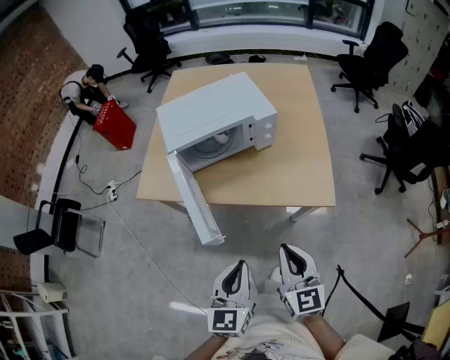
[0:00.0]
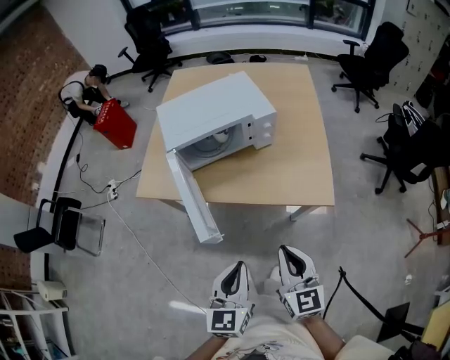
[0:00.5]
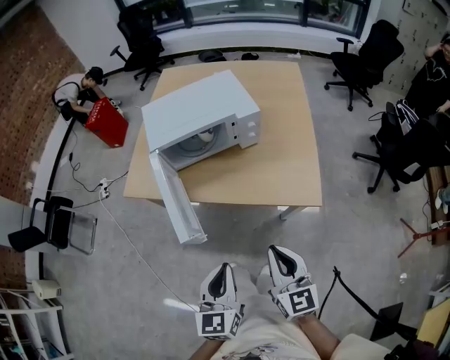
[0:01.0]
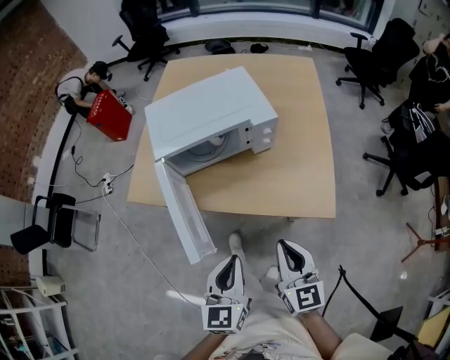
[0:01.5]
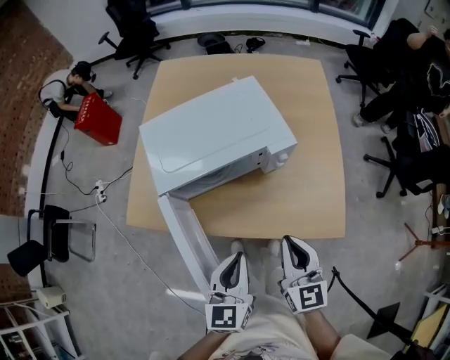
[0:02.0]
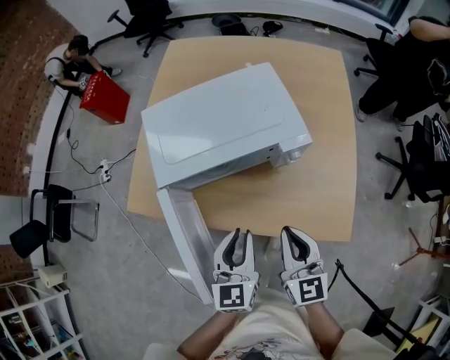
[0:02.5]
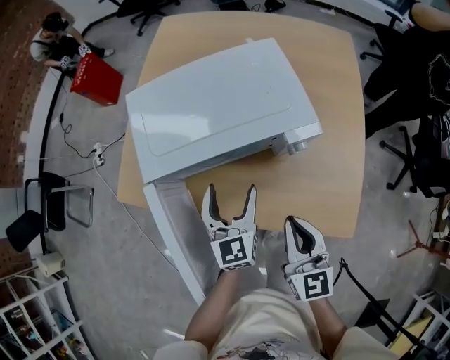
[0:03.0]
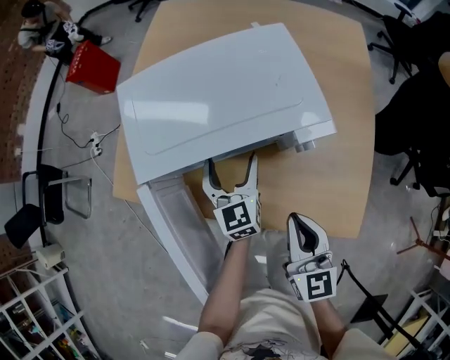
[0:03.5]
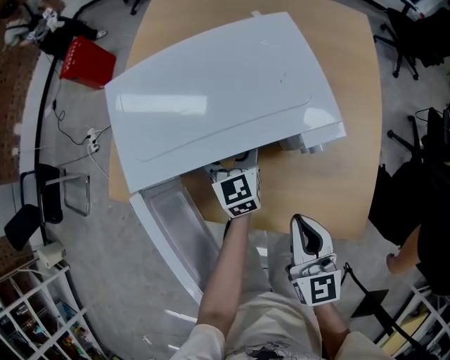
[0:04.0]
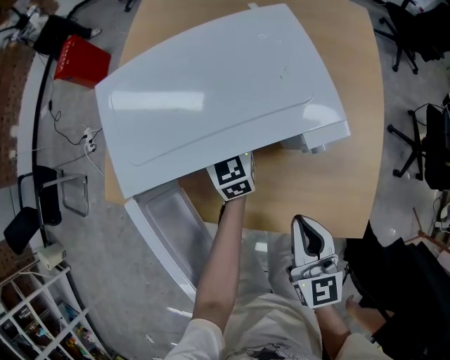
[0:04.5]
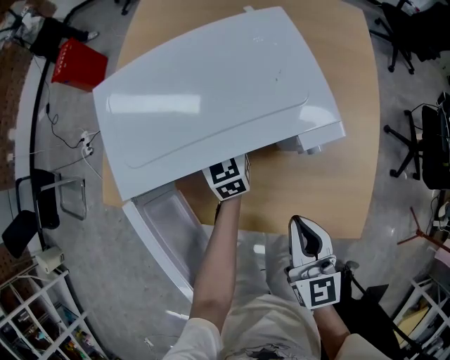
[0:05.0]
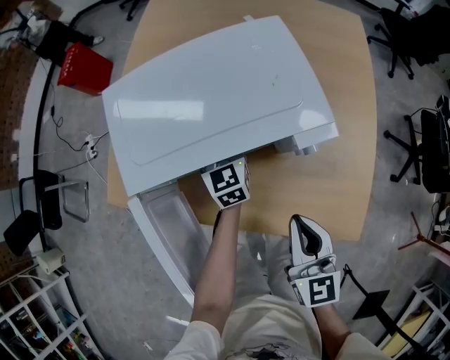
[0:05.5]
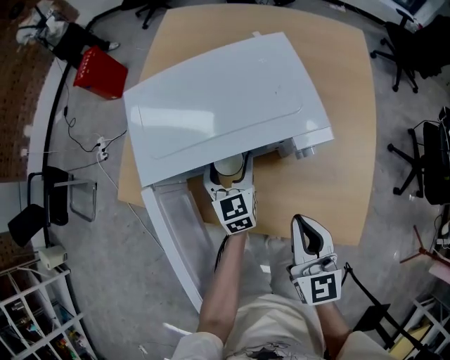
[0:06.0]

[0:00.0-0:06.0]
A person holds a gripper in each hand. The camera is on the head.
0:00.0 to 0:02.0: Both grippers travel together forward, roughly 20 cm.
0:02.0 to 0:04.0: The left gripper goes approximately 35 cm forward and downward, changes its angle by roughly 20 degrees, and opens up. The right gripper goes roughly 15 cm downward and forward.
0:04.0 to 0:06.0: The left gripper shifts by approximately 5 cm.

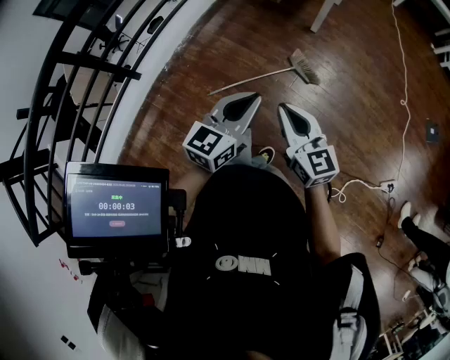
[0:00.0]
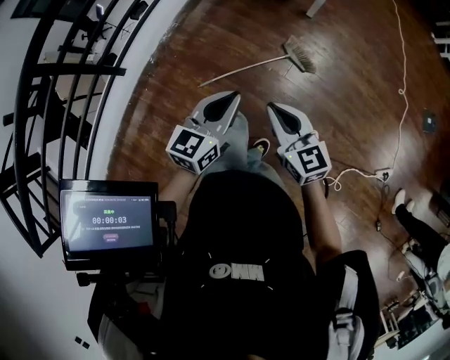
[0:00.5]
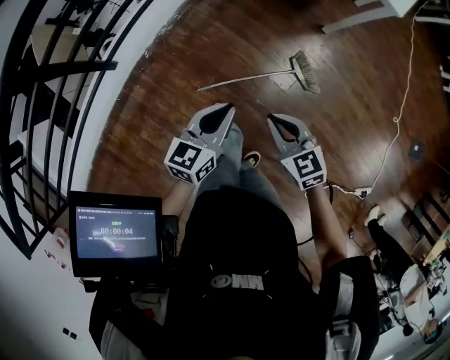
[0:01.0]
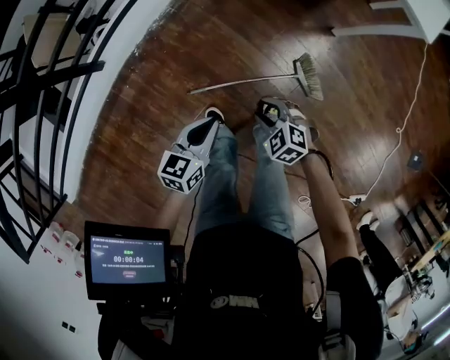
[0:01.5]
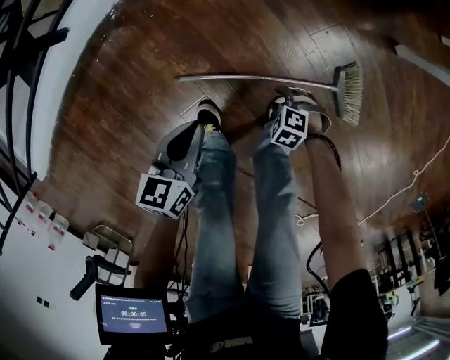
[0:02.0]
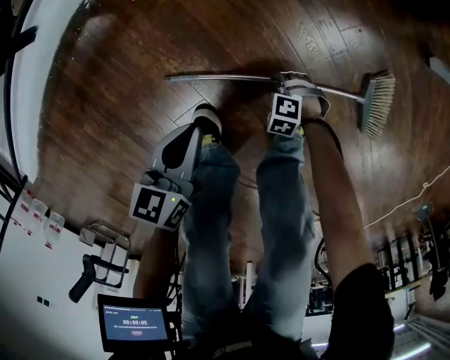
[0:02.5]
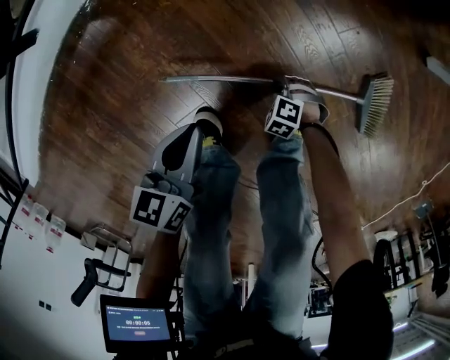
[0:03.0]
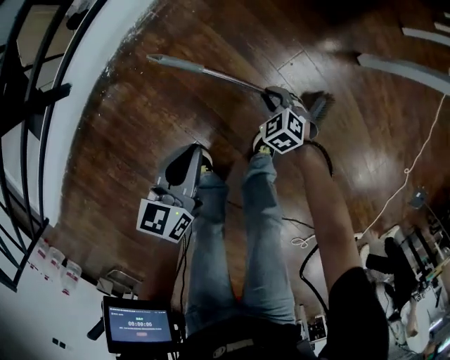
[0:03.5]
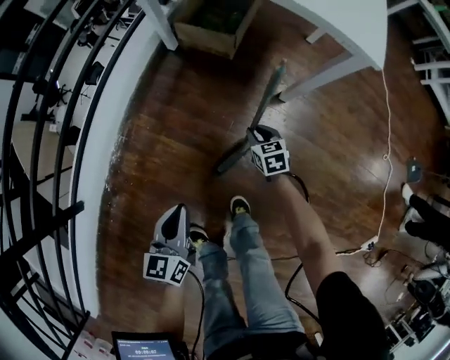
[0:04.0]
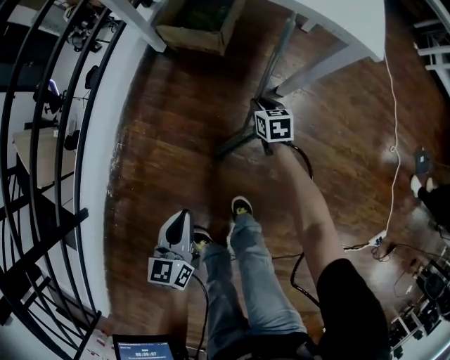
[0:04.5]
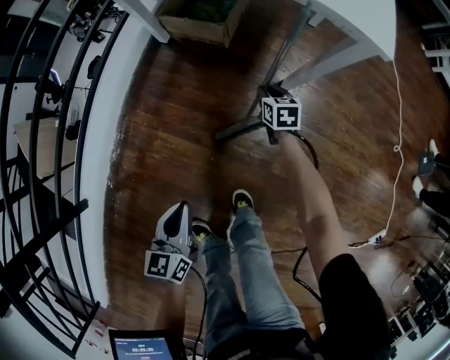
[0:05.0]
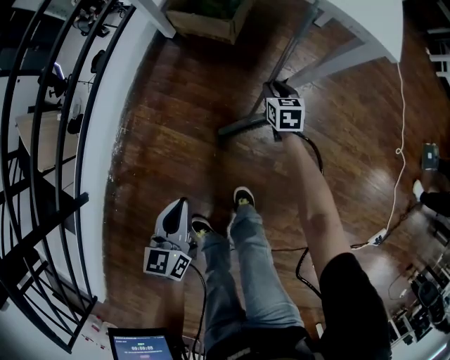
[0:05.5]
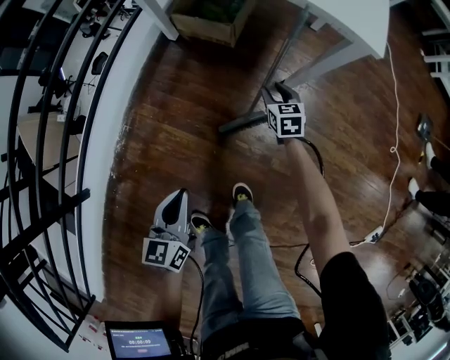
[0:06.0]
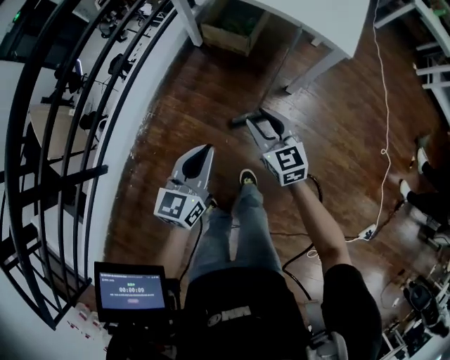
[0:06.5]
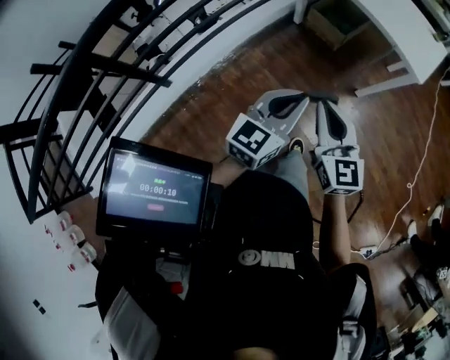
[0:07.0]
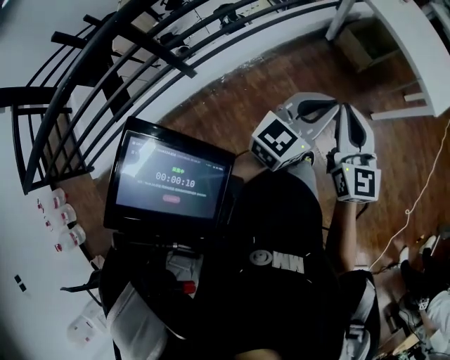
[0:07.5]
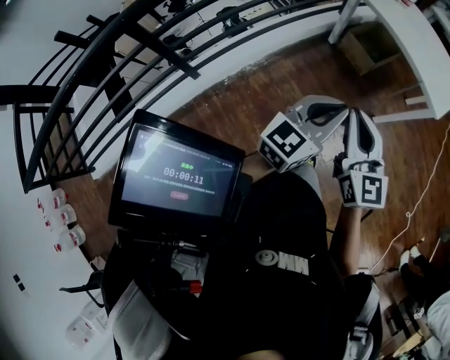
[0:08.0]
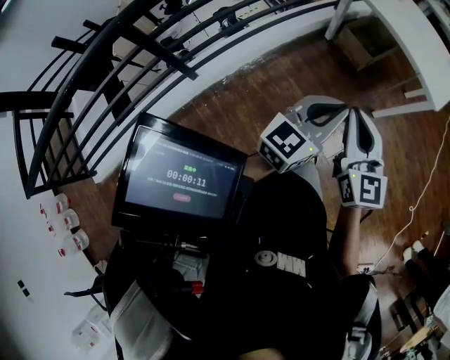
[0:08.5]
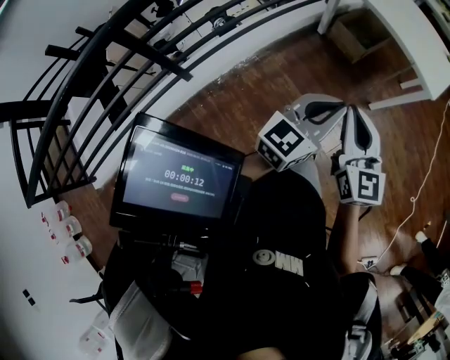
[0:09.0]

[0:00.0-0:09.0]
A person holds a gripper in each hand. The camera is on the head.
0:00.0 to 0:02.0: The grippers both shift downward by approximately 60 cm. The left gripper turns by roughly 50 degrees; the right gripper tips its fingers downward by roughly 70 degrees, and opens its fingers.
0:02.0 to 0:04.5: The left gripper ends up about 30 cm from where it was, and rotates approximately 20 degrees. The right gripper shifts by approximately 50 cm, twists about 90 degrees clockwise, seen from behind, and closes its fingers.
0:04.5 to 0:07.0: The left gripper moves upward, about 35 cm, and turns by roughly 30 degrees; the right gripper is displaced upward, backward and to the left by approximately 70 cm, and angles its fingers upward, by some 40 degrees.
0:07.0 to 0:09.0: The left gripper shifts some 10 cm backward and upward; the right gripper shifts roughly 10 cm upward and backward.

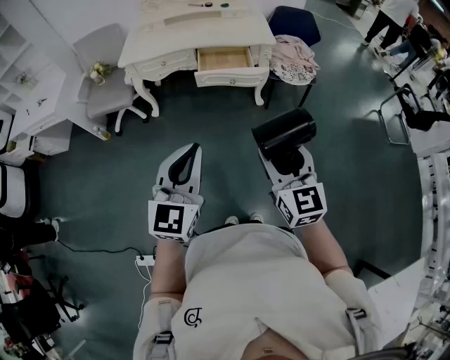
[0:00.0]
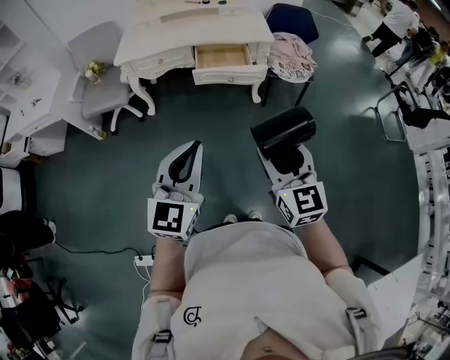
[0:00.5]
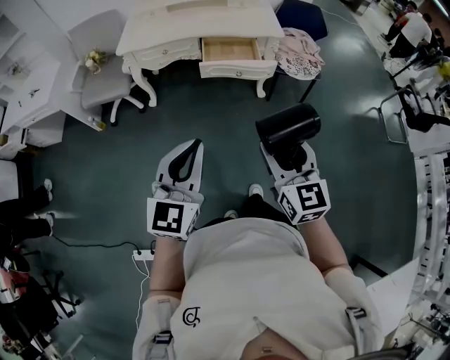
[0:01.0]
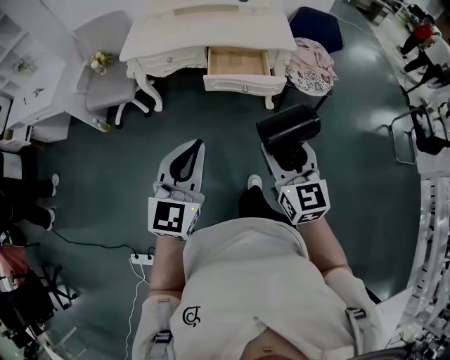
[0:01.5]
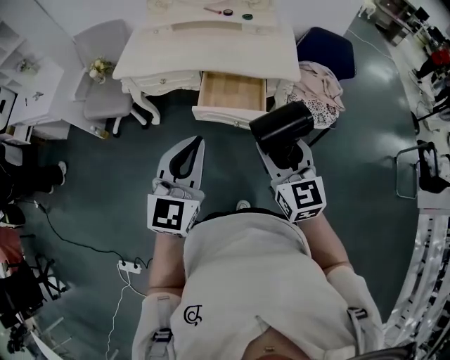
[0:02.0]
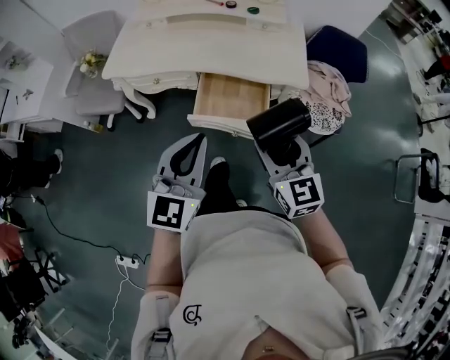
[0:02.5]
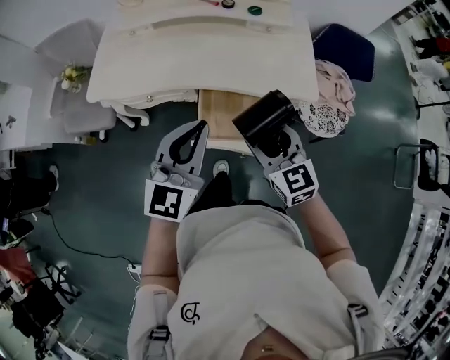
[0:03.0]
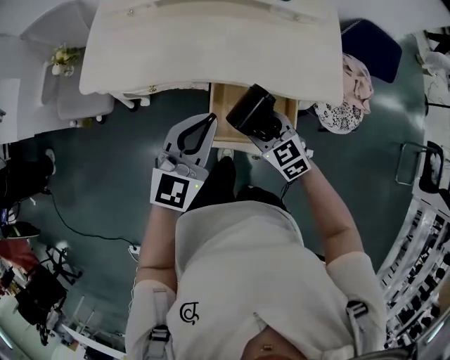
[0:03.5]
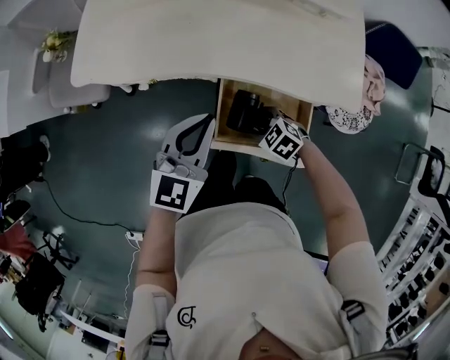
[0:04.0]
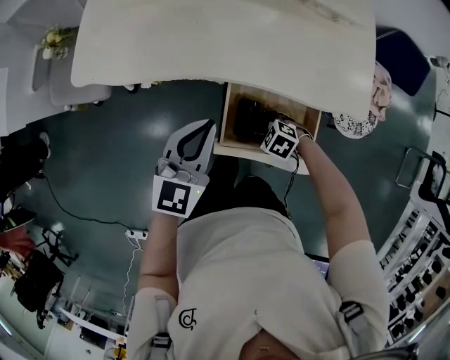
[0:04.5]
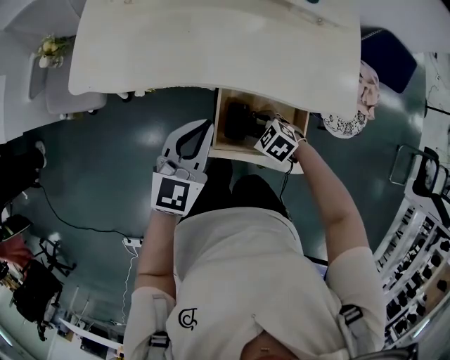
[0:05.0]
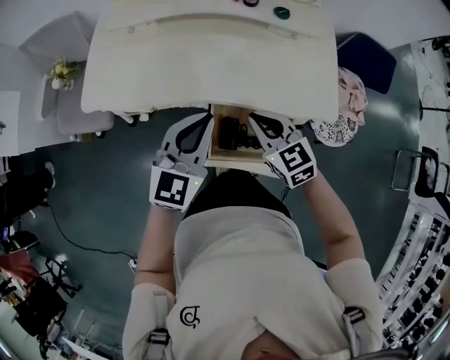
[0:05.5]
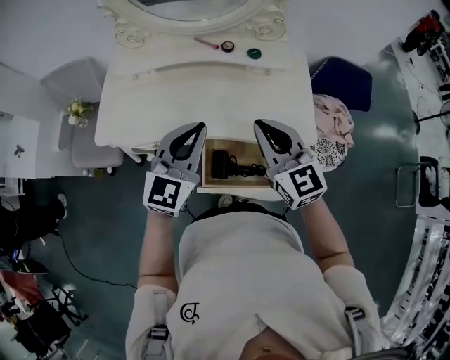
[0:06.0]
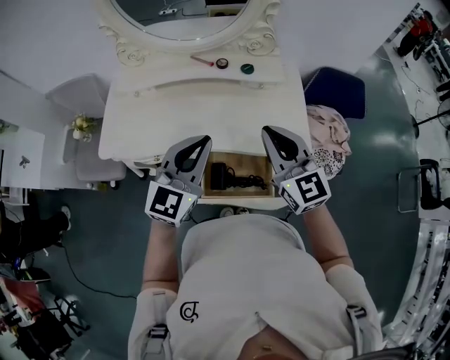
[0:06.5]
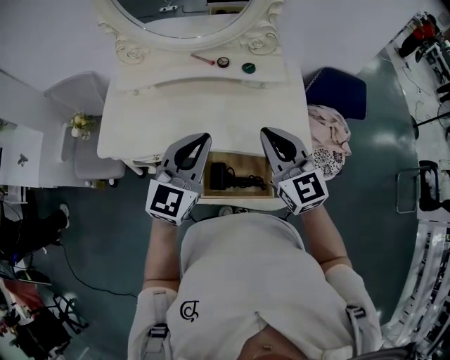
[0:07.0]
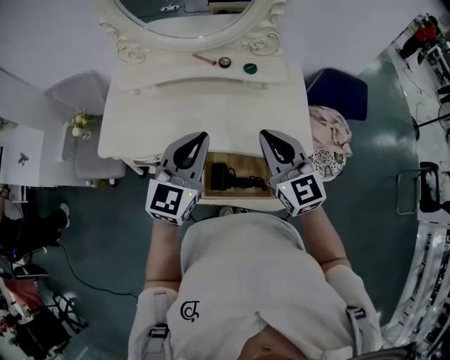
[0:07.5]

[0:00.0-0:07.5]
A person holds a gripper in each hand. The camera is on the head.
0:00.0 to 0:02.0: The two grippers go approximately 30 cm forward.
0:02.0 to 0:04.0: The right gripper travels downward and forward by some 50 cm, and angles its fingers downward, by about 50 degrees. The left gripper moves forward and downward, some 40 cm.
0:04.0 to 0:05.5: The right gripper is displaced upward by roughly 25 cm, angles its fingers upward, by roughly 30 degrees, and closes up. The left gripper shifts approximately 5 cm upward.
0:05.5 to 0:07.5: The right gripper heads upward and to the right, covering approximately 20 cm, and swivels some 30 degrees, while the left gripper travels upward by some 10 cm.

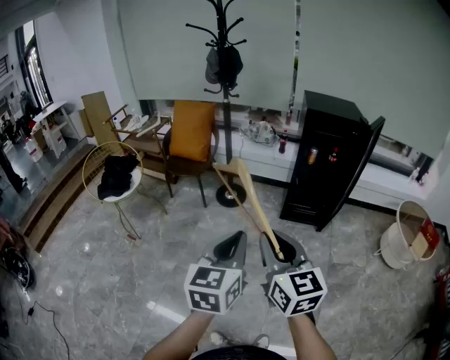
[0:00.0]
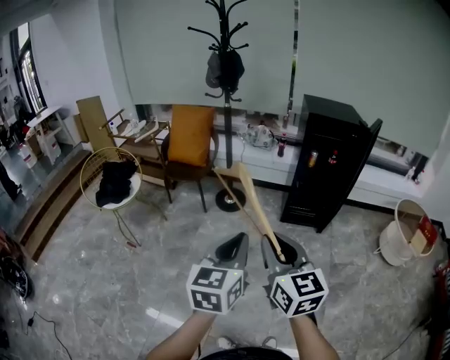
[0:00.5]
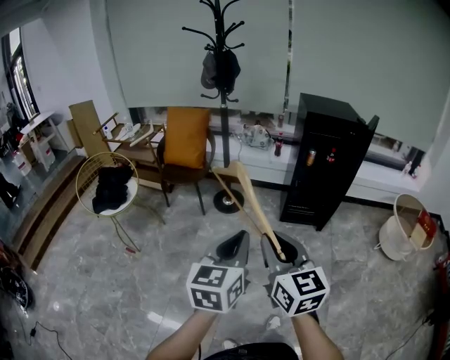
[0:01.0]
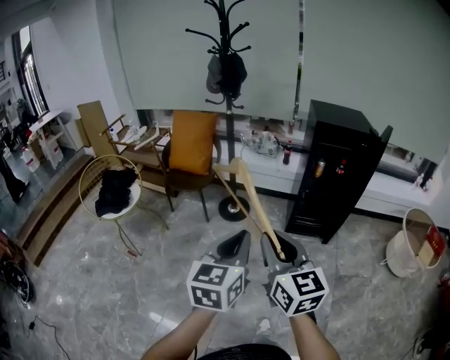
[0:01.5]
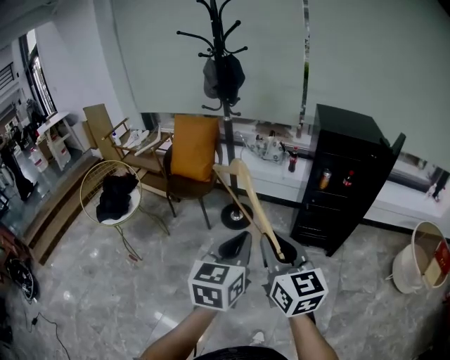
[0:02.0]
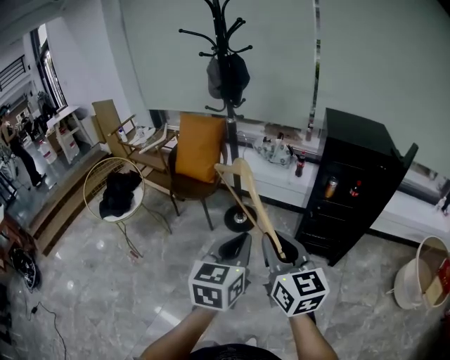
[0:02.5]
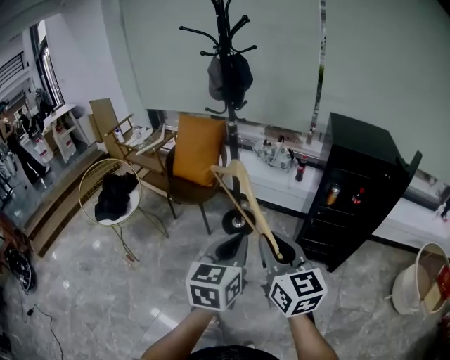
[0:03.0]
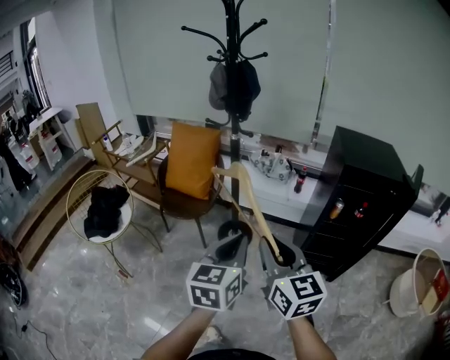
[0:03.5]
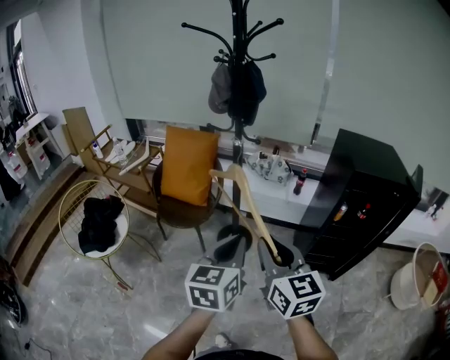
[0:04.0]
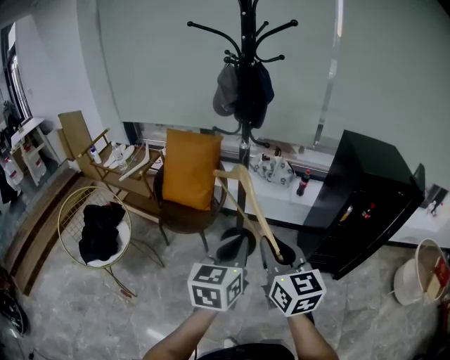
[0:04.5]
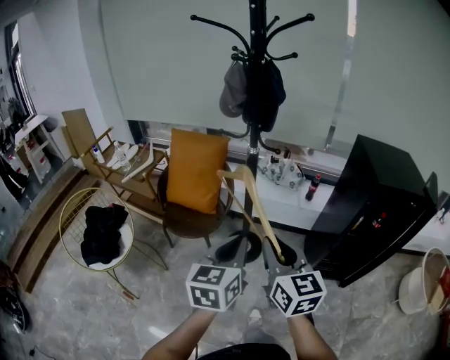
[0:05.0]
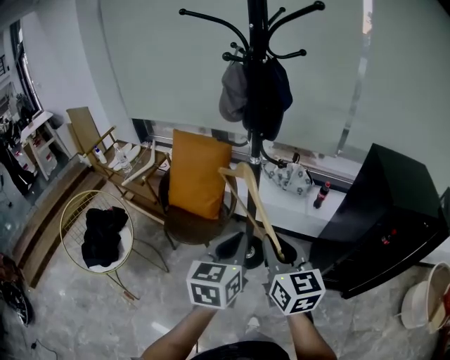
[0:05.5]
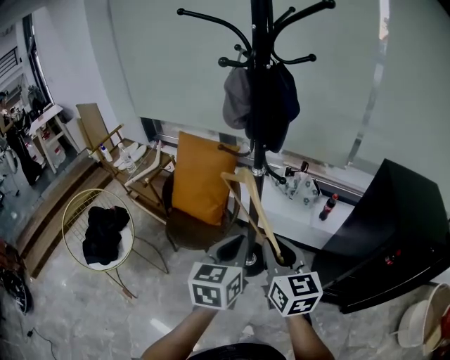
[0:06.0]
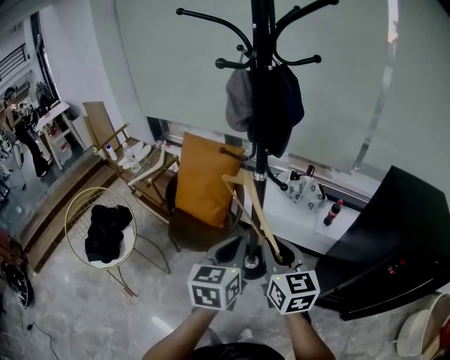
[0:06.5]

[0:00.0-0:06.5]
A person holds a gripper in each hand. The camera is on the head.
0:00.0 to 0:02.0: Both grippers move forward, roughly 20 cm.
0:02.0 to 0:04.5: The two grippers go some 35 cm forward and to the left.
0:04.5 to 0:06.5: Both grippers move forward, some 25 cm.
